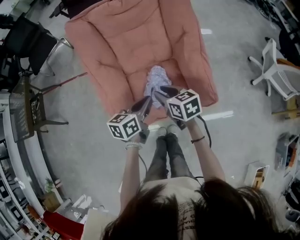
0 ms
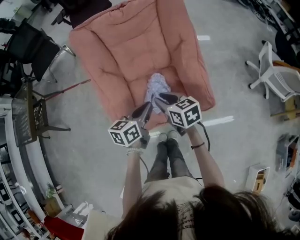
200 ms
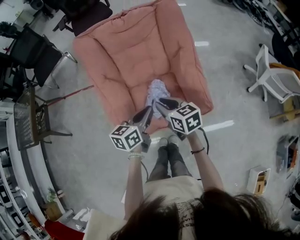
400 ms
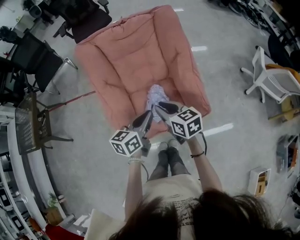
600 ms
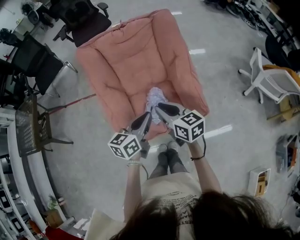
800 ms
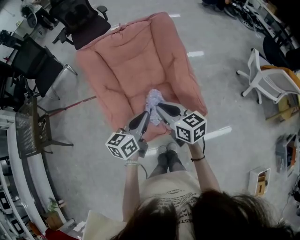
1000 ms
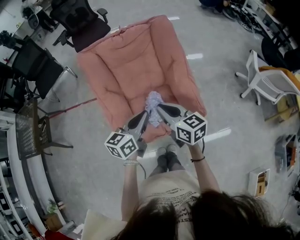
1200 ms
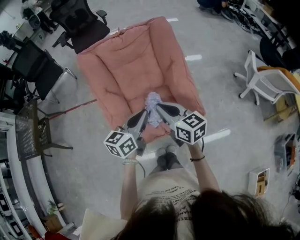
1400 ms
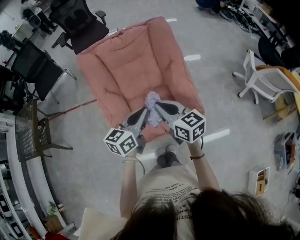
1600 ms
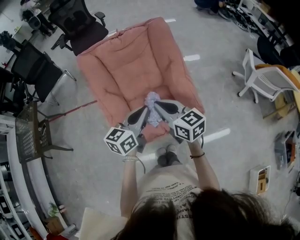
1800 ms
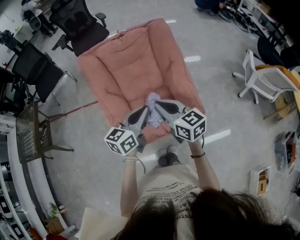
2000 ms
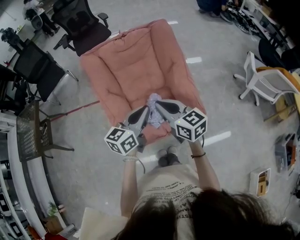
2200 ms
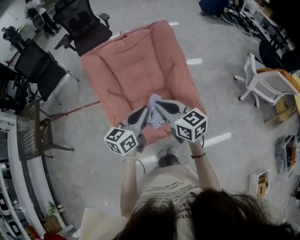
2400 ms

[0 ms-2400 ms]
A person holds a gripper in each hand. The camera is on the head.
0 ms to 1200 ms: Both grippers move upward, about 15 cm. The right gripper rotates approximately 20 degrees, and closes its fingers.
1200 ms to 2400 ms: There are only small adjustments of the grippers.

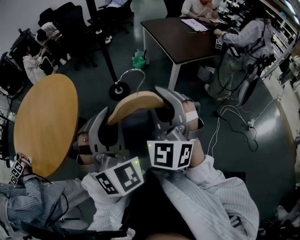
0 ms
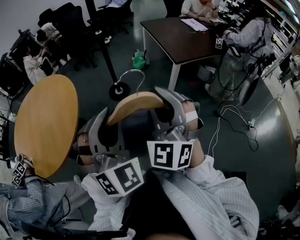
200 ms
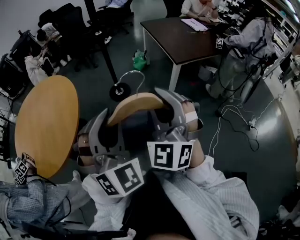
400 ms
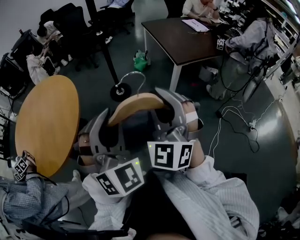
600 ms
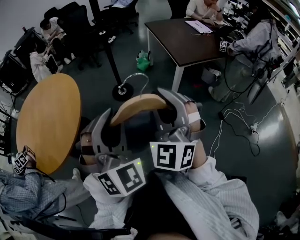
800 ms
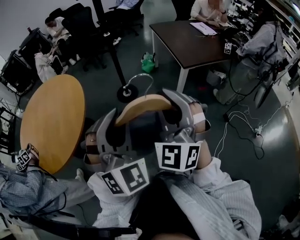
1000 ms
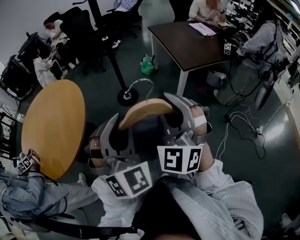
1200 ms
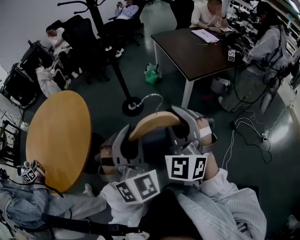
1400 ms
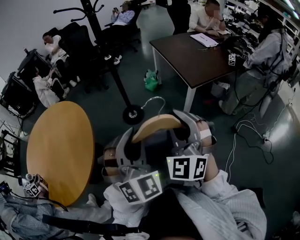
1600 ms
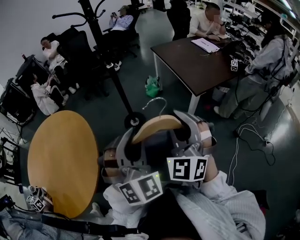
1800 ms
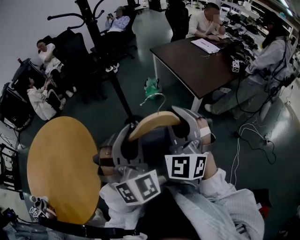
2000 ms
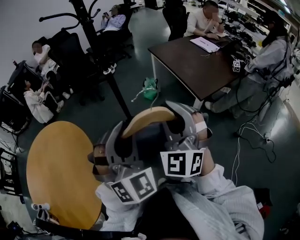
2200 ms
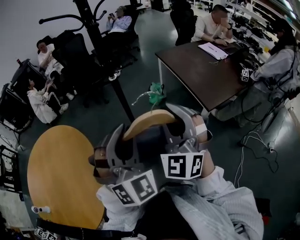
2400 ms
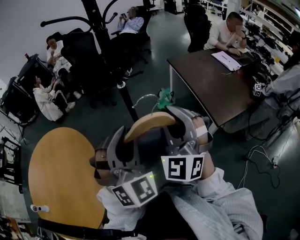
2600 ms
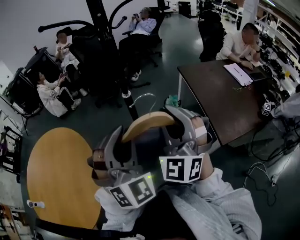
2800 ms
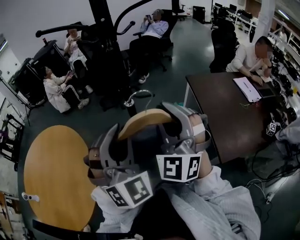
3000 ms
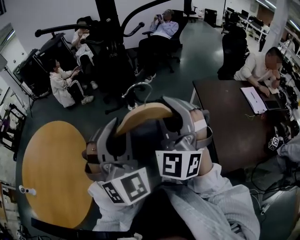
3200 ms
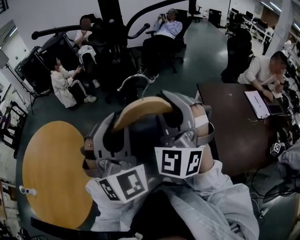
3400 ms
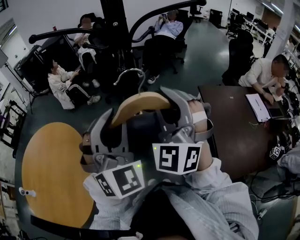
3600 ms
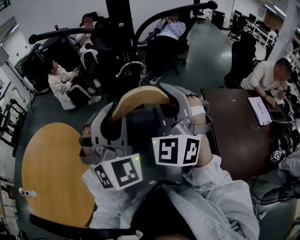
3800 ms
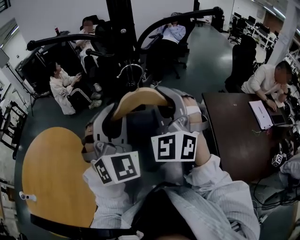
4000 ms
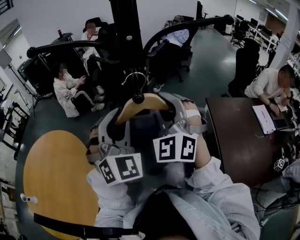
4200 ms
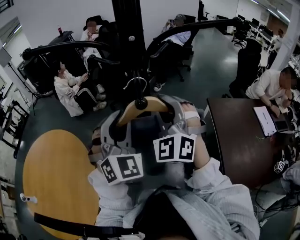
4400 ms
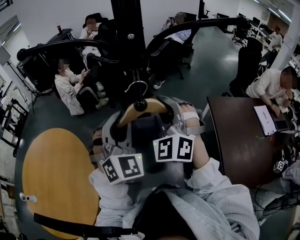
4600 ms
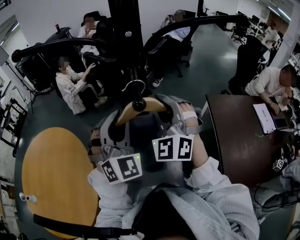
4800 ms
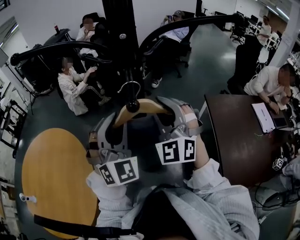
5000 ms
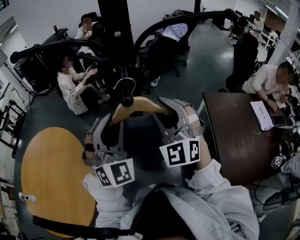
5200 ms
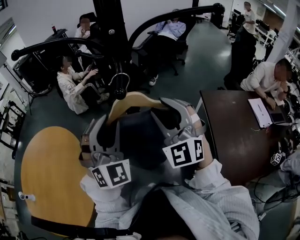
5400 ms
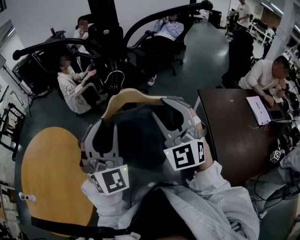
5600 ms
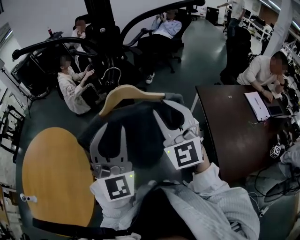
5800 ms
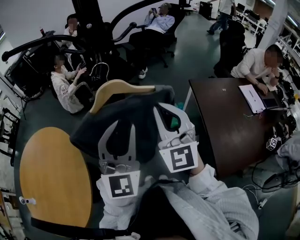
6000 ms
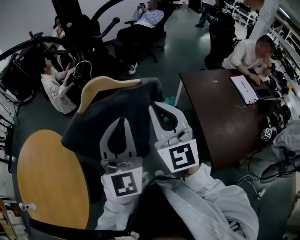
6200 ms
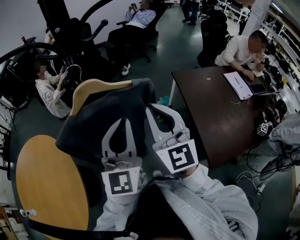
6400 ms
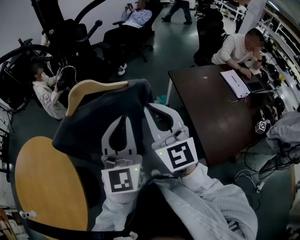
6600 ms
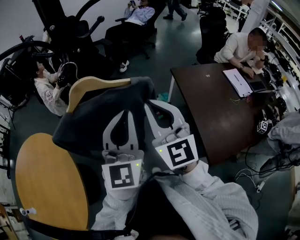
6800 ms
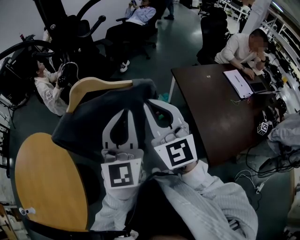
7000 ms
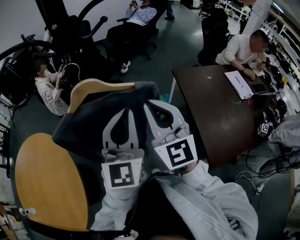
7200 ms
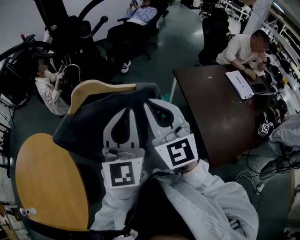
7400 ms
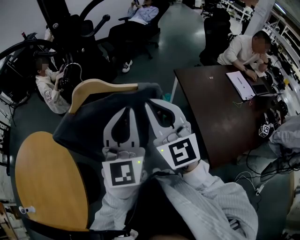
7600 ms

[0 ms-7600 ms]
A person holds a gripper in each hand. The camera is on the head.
0 ms to 1600 ms: The two grippers go about 15 cm forward.
1600 ms to 3000 ms: The pair of grippers is taken forward, roughly 50 cm.
3000 ms to 4600 ms: Both grippers move forward, approximately 25 cm.
4600 ms to 6000 ms: The two grippers go about 15 cm backward and to the right. The left gripper changes its angle by some 30 degrees. The right gripper swivels roughly 30 degrees.
6000 ms to 7600 ms: The left gripper is displaced to the right by some 5 cm, and closes its fingers.

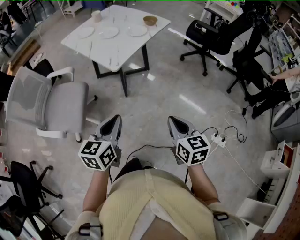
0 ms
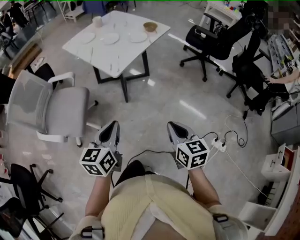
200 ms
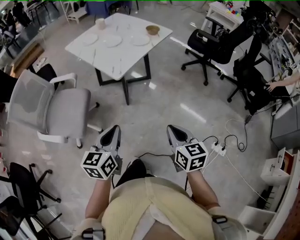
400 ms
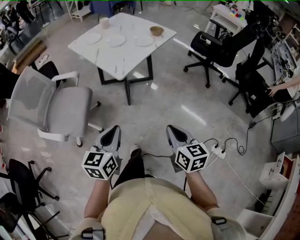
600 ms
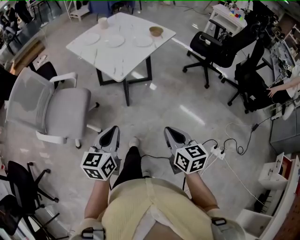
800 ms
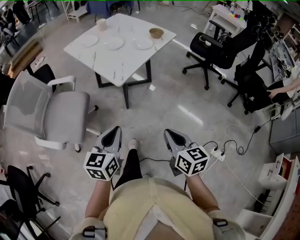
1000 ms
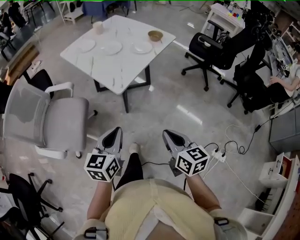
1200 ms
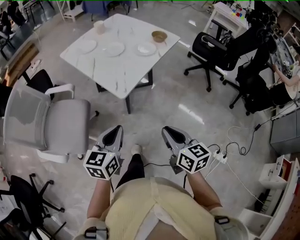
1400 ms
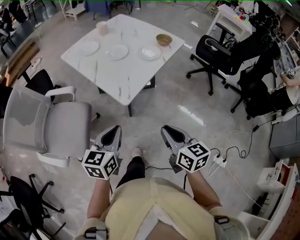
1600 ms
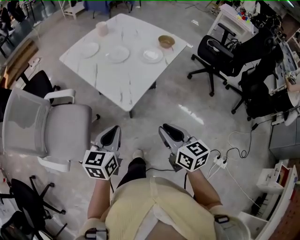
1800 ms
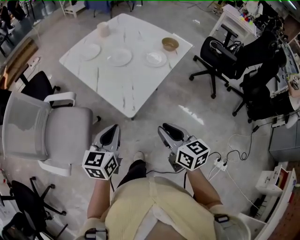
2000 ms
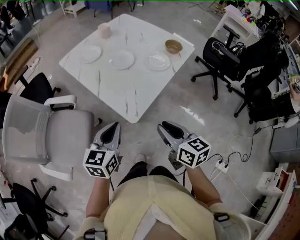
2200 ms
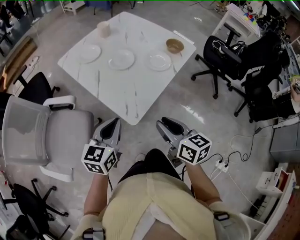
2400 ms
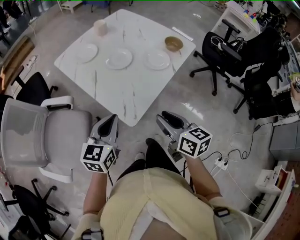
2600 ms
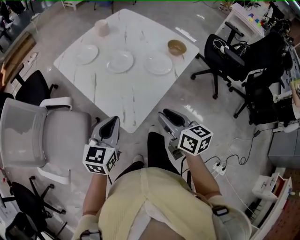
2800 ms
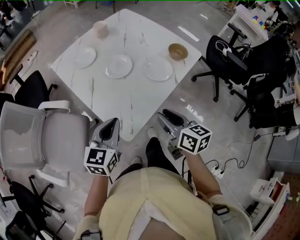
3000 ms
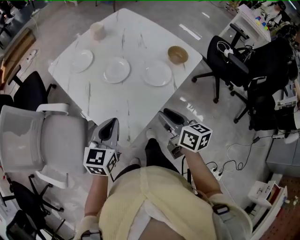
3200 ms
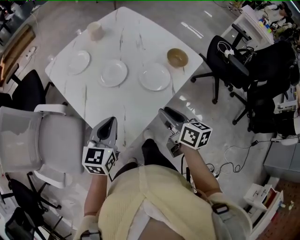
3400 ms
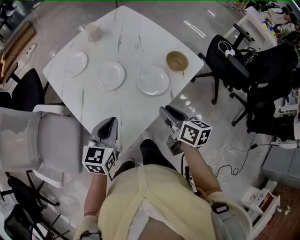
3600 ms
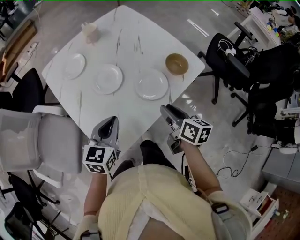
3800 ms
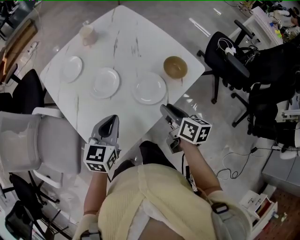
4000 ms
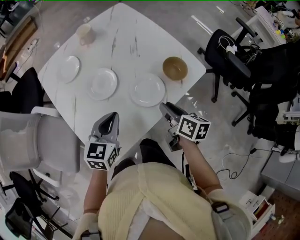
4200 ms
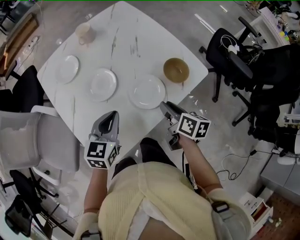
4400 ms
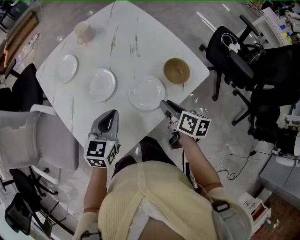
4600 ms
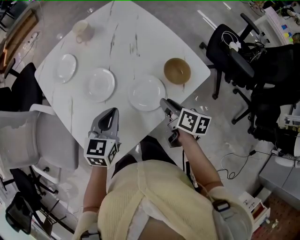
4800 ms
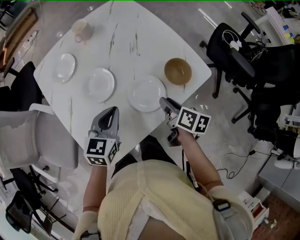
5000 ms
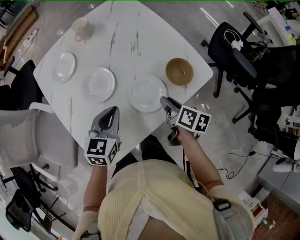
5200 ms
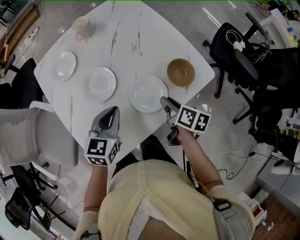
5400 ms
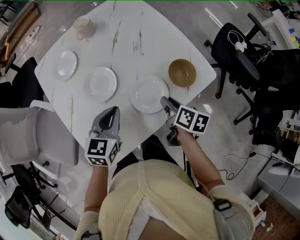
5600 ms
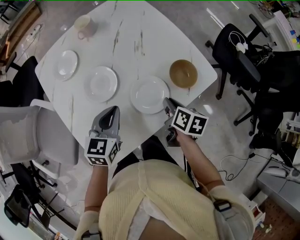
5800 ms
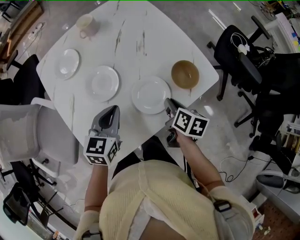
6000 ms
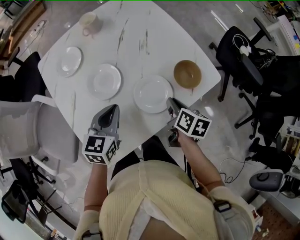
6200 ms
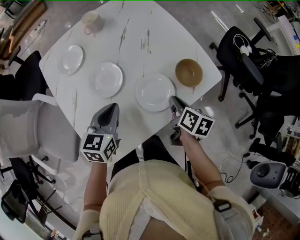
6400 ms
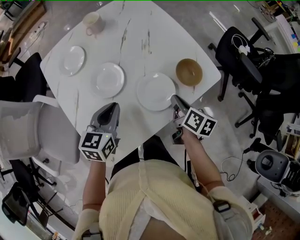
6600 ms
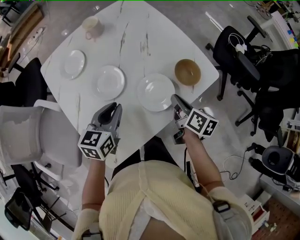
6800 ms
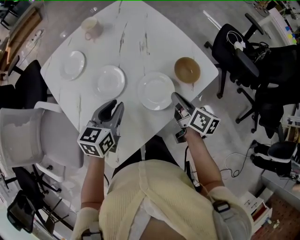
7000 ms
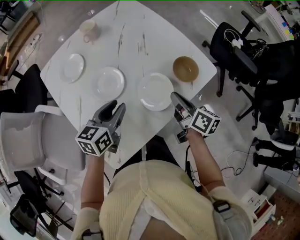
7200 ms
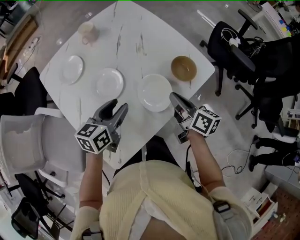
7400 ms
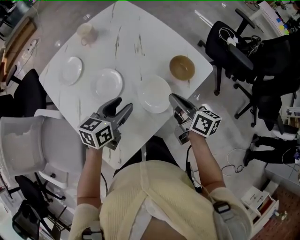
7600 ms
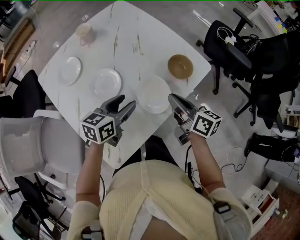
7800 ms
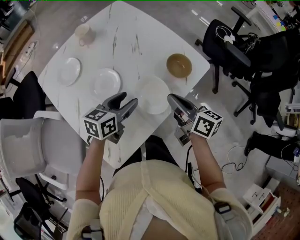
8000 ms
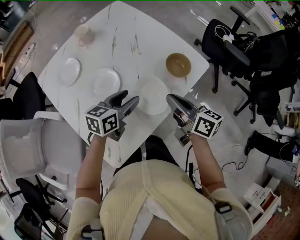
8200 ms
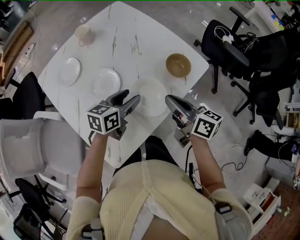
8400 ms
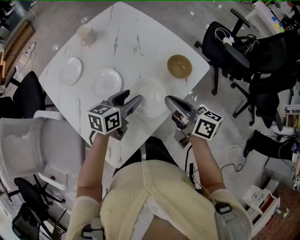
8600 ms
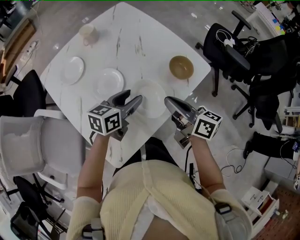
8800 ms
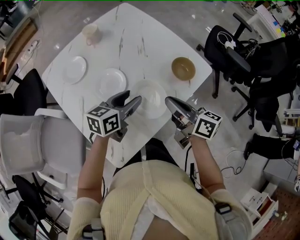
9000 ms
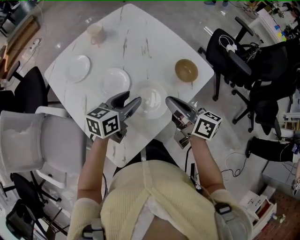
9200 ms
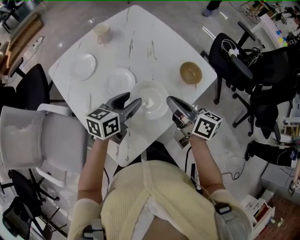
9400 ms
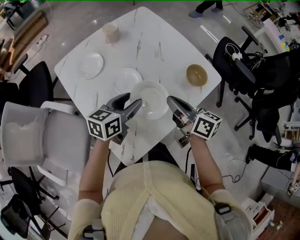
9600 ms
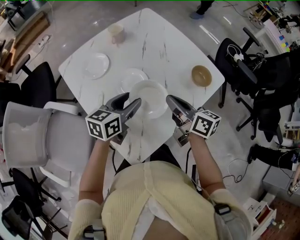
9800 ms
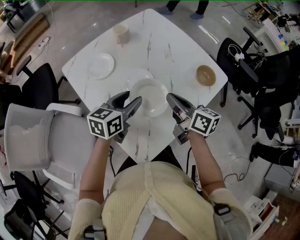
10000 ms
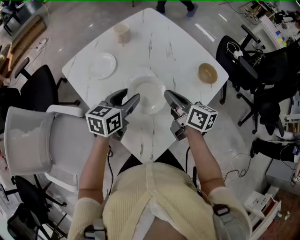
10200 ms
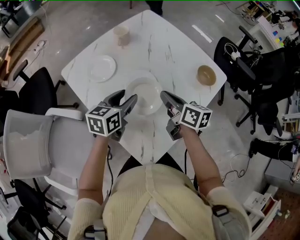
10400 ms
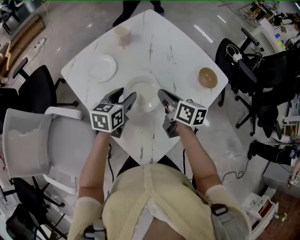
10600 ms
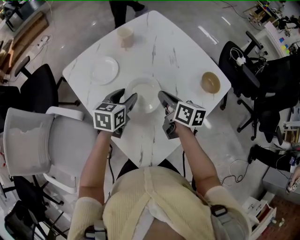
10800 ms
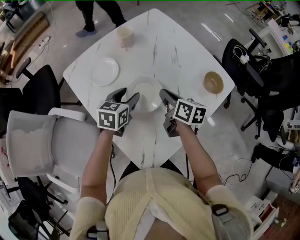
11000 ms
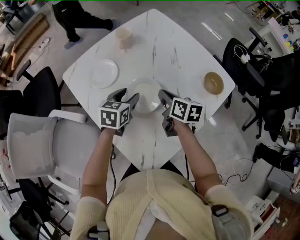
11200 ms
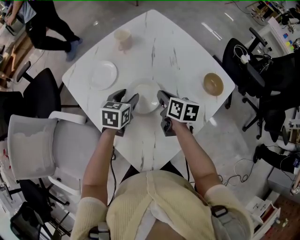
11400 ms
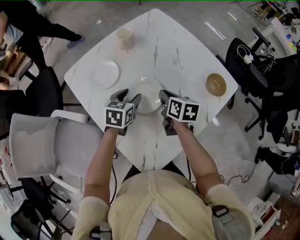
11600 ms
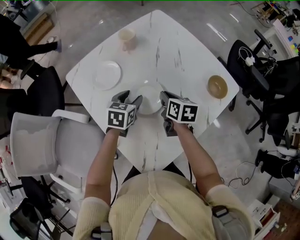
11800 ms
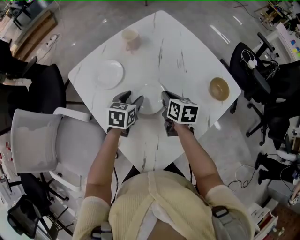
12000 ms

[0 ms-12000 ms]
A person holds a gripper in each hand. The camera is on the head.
0 ms to 1600 ms: The left gripper travels forward by some 15 cm; the right gripper heads forward and to the left, covering roughly 20 cm.
1600 ms to 3000 ms: The two grippers go roughly 25 cm forward. The right gripper opens up.
3000 ms to 4400 ms: The left gripper travels forward and to the right by approximately 20 cm, while the right gripper goes about 25 cm forward, to the right and downward.
4400 ms to 6000 ms: The right gripper moves approximately 5 cm.
6000 ms to 7600 ms: The right gripper goes about 10 cm upward, and swivels approximately 30 degrees, while the left gripper rotates about 30 degrees, and opens its fingers.
7600 ms to 9000 ms: The right gripper goes some 5 cm upward.
9000 ms to 10400 ms: Both grippers travel together to the left, roughly 15 cm.
10400 ms to 12000 ms: Both grippers travel together downward and forward, roughly 10 cm. The right gripper changes its angle by approximately 20 degrees, while the left gripper rotates some 20 degrees.

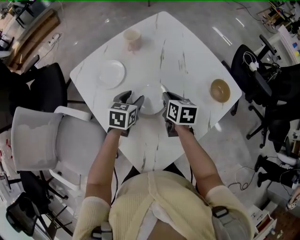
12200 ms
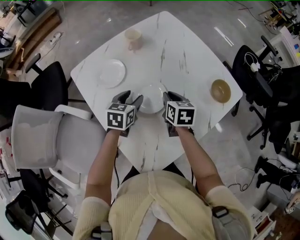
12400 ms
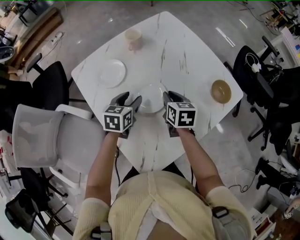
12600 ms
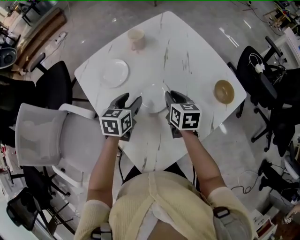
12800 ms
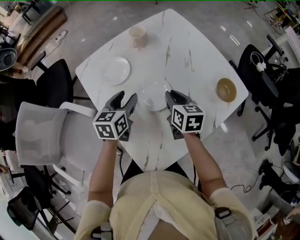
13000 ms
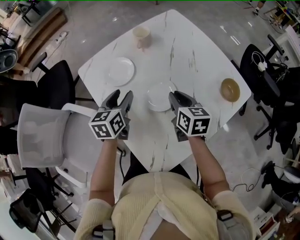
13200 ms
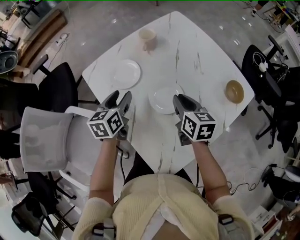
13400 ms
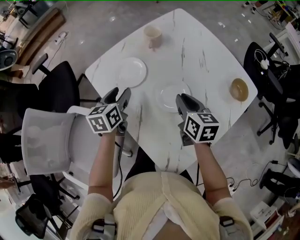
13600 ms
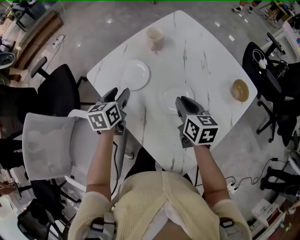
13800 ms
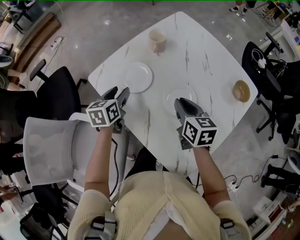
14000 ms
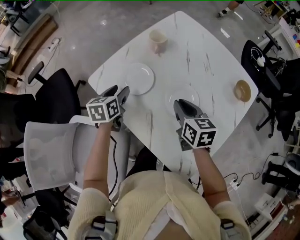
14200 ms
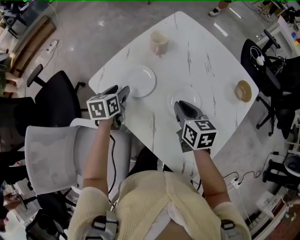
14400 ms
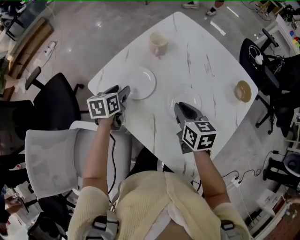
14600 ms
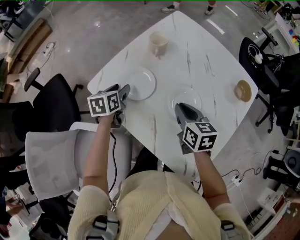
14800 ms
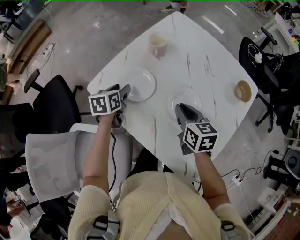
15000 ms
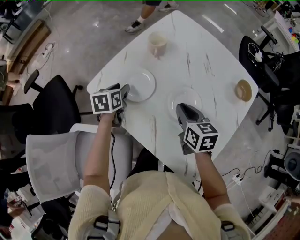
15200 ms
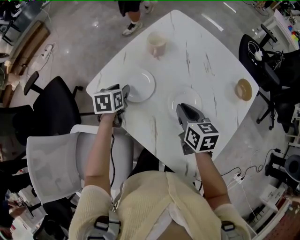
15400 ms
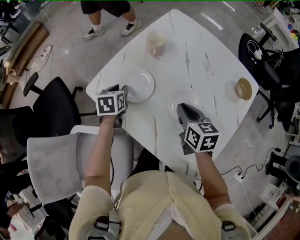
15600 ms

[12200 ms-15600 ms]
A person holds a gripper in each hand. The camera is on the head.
12200 ms to 13800 ms: The left gripper heads to the left, covering about 20 cm, while the right gripper moves to the left and upward, approximately 10 cm.
13800 ms to 15600 ms: The left gripper is displaced forward and downward by some 10 cm.
